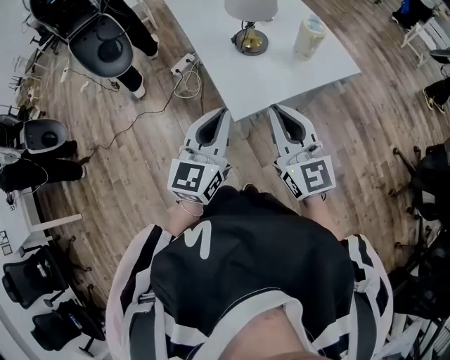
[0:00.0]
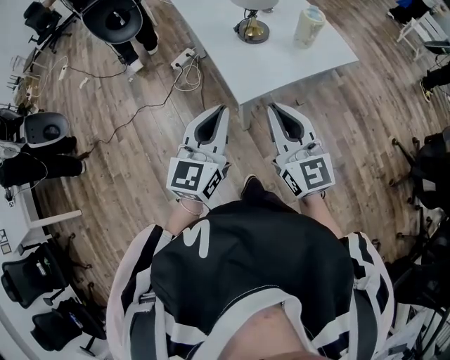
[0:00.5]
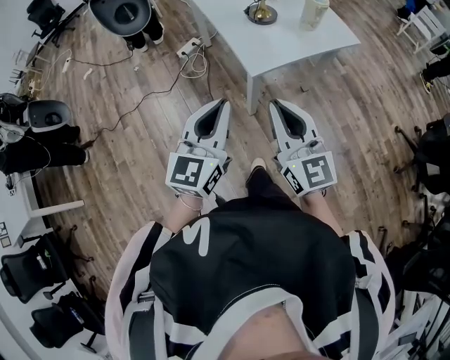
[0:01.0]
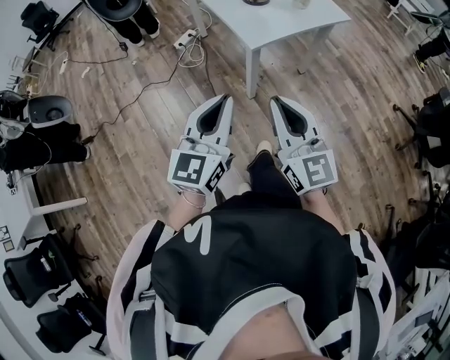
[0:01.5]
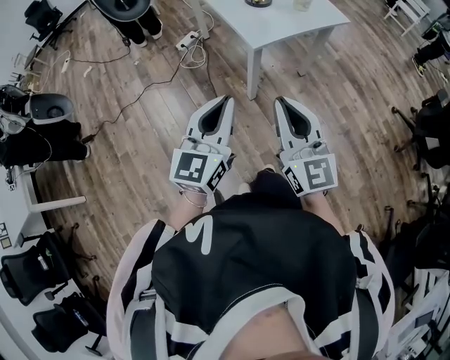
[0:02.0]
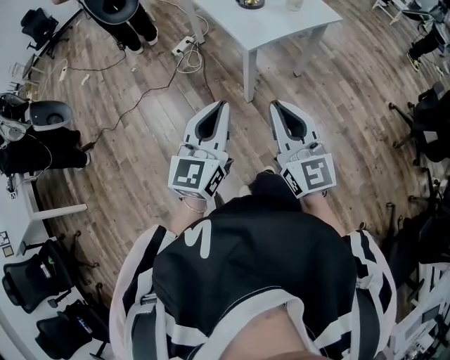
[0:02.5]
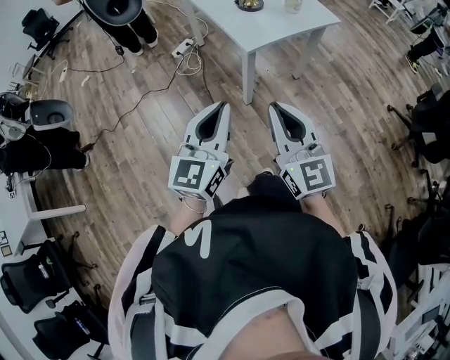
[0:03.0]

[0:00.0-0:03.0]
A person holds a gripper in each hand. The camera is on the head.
0:00.0 to 0:01.5: Both grippers move backward, roughly 25 cm.
0:01.5 to 0:03.0: There are only small adjustments of the grippers.

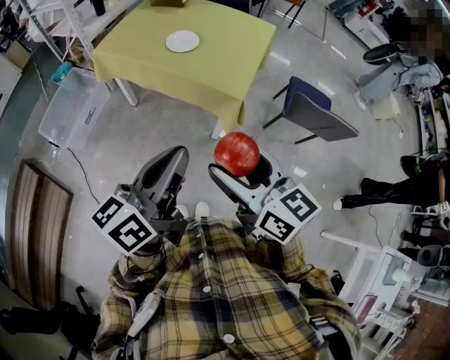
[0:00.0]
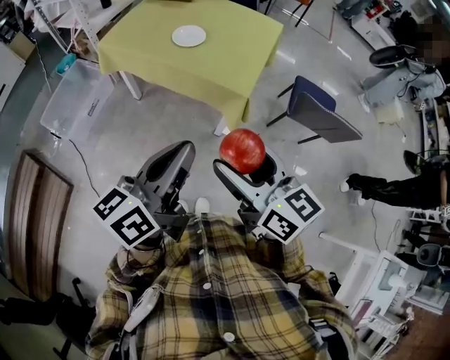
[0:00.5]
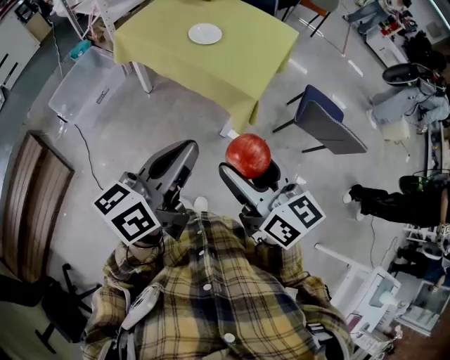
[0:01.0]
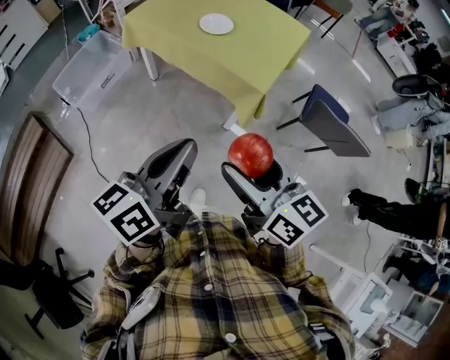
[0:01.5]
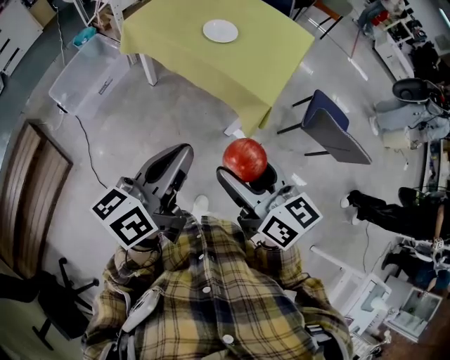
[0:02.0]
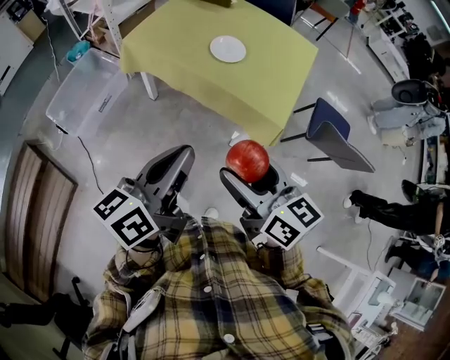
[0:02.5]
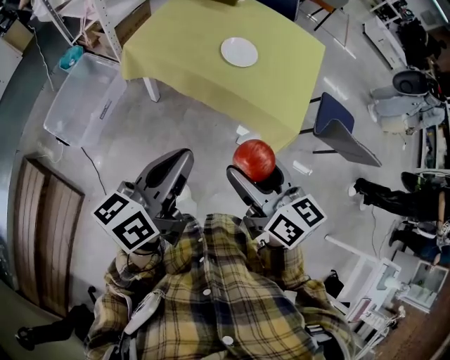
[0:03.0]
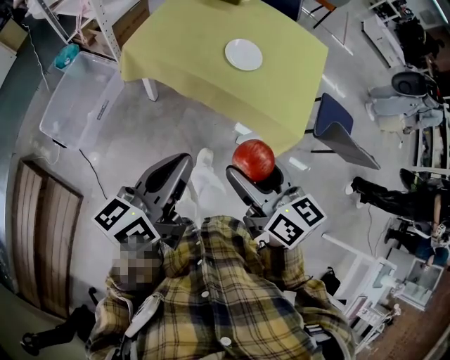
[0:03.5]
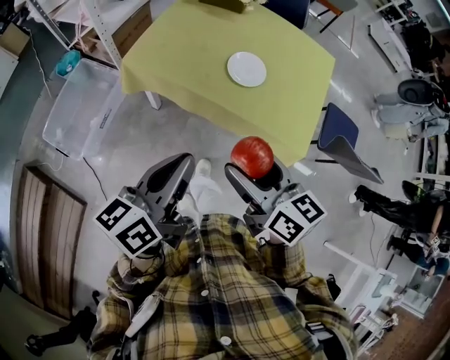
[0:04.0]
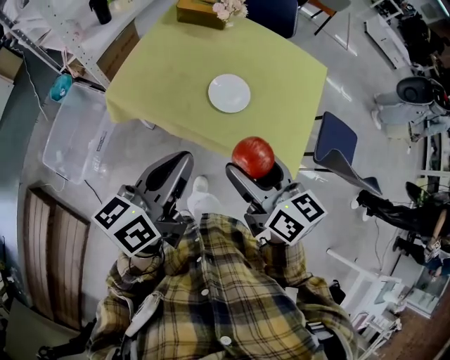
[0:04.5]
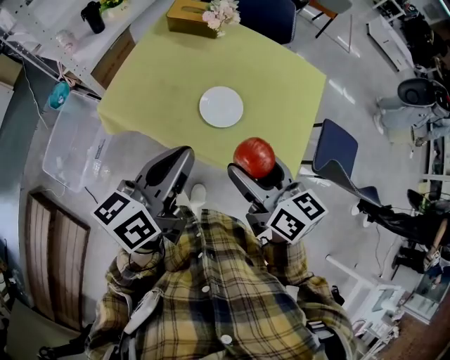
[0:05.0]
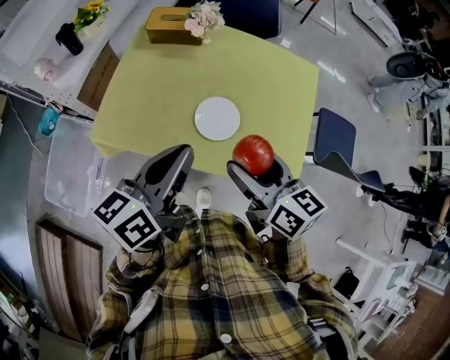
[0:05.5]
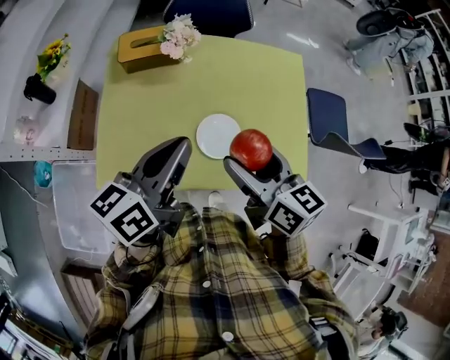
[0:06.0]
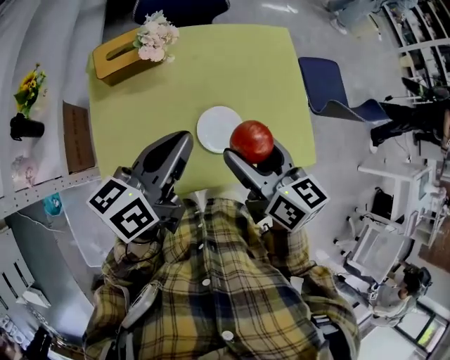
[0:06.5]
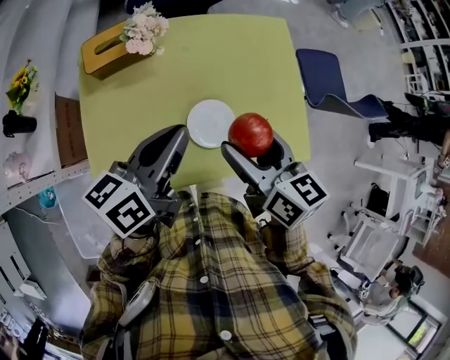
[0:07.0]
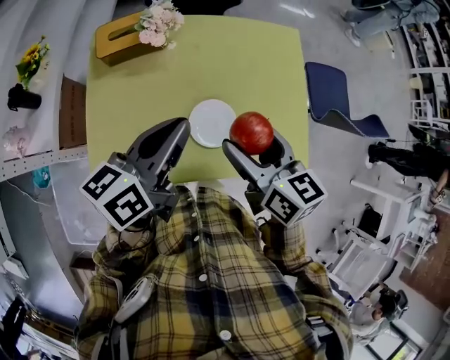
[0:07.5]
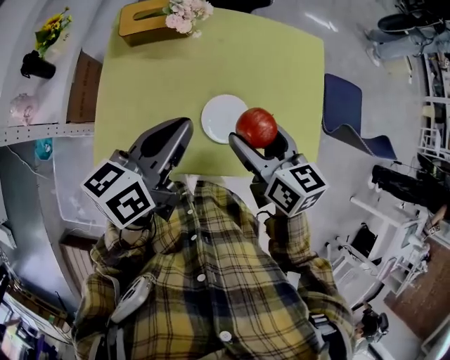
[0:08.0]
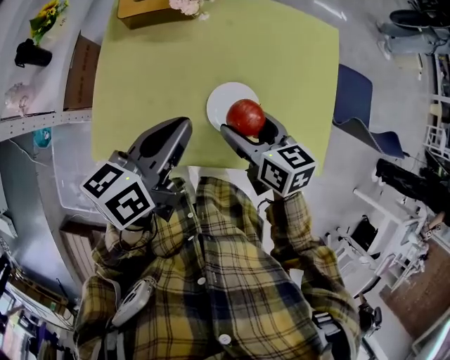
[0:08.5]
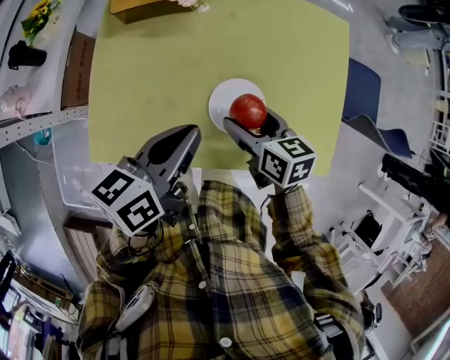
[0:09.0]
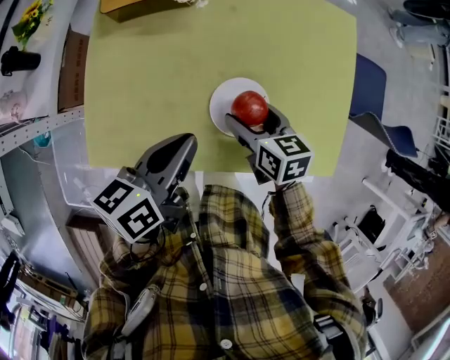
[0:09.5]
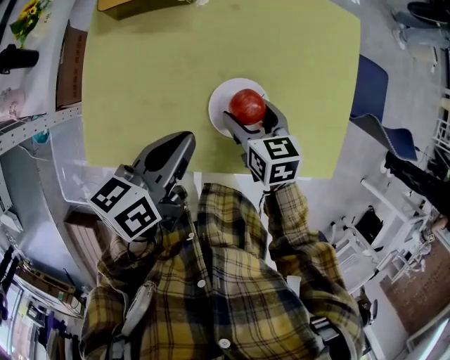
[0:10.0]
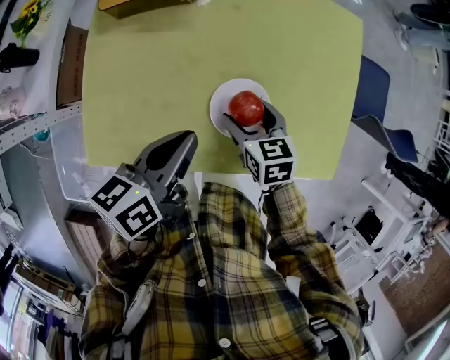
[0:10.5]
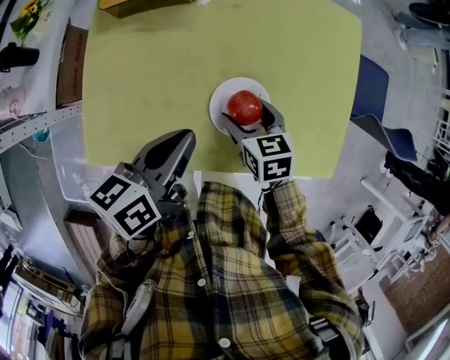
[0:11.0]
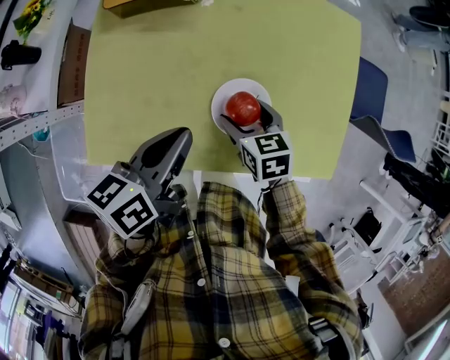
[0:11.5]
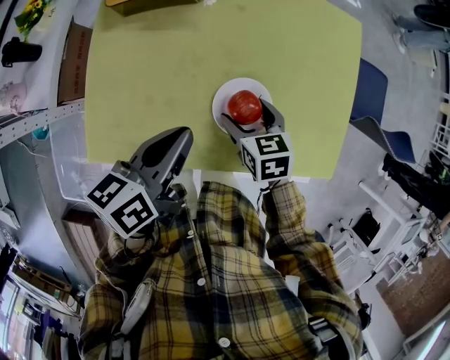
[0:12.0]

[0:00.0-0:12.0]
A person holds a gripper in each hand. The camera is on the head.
0:00.0 to 0:02.0: Both grippers move to the left, some 5 cm.
0:02.0 to 0:04.0: The two grippers go approximately 30 cm forward and to the left.
0:04.0 to 0:06.0: Both grippers move forward, some 35 cm. The right gripper turns by some 20 degrees, while the left gripper changes its angle by about 20 degrees.
0:06.0 to 0:08.0: The right gripper heads downward, covering approximately 5 cm.
0:08.0 to 0:10.0: The right gripper goes about 20 cm downward, while the left gripper heads downward, covering some 10 cm.
0:10.0 to 0:12.0: The grippers move only a little.

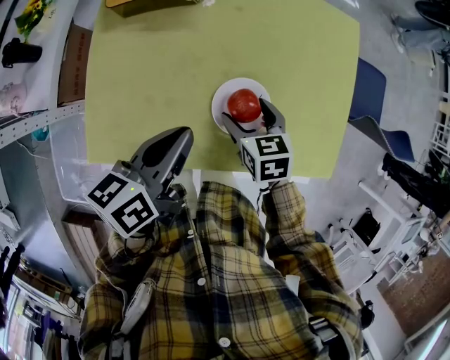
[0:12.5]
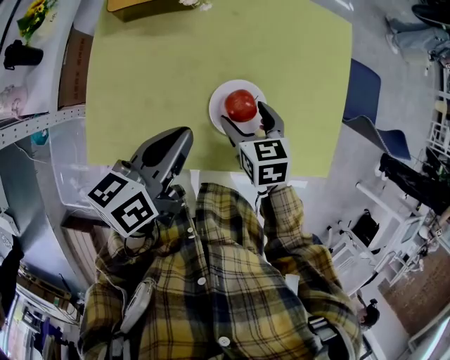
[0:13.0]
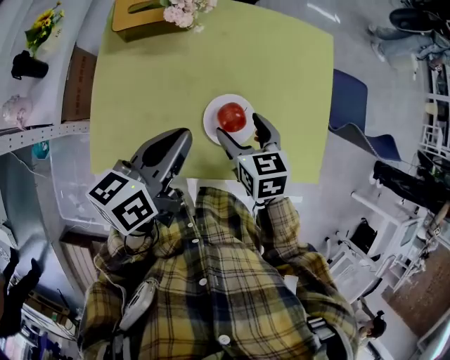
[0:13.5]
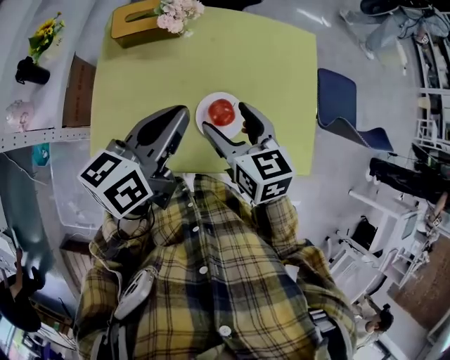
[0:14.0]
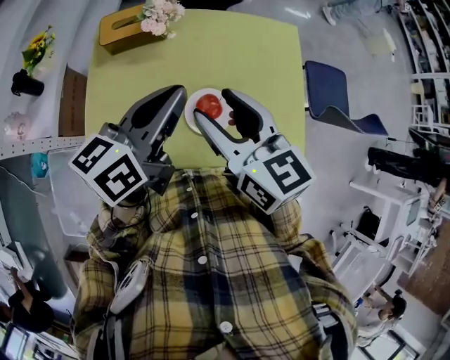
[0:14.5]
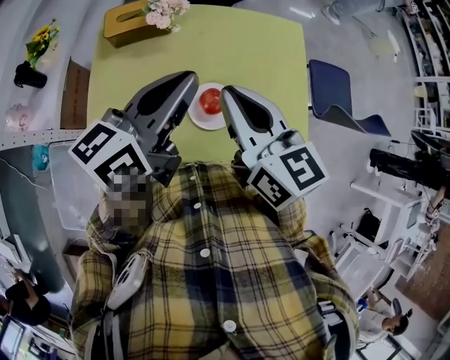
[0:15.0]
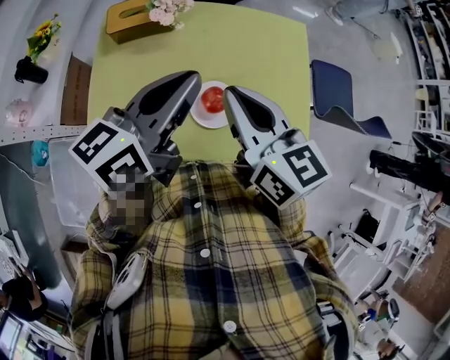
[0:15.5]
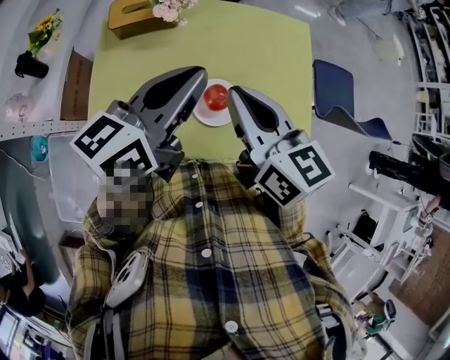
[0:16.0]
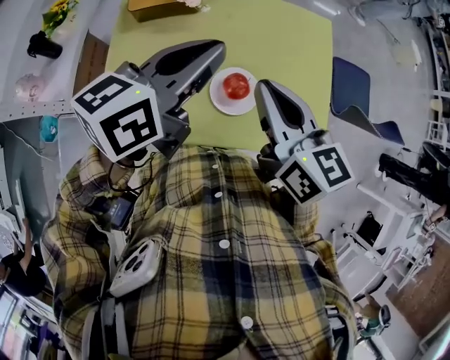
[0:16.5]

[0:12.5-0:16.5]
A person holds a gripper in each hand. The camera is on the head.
0:12.5 to 0:14.5: The right gripper heads upward, covering approximately 30 cm, and tips its fingers upward by roughly 40 degrees. Meanwhile the left gripper shifts roughly 15 cm upward, and changes its angle by approximately 20 degrees.
0:14.5 to 0:16.5: The right gripper closes.

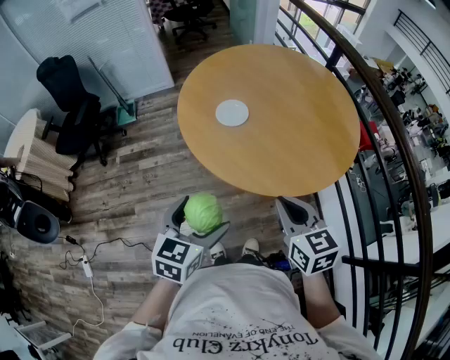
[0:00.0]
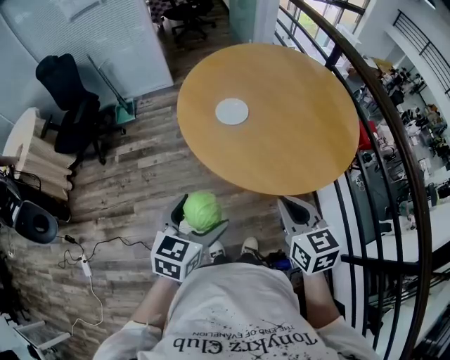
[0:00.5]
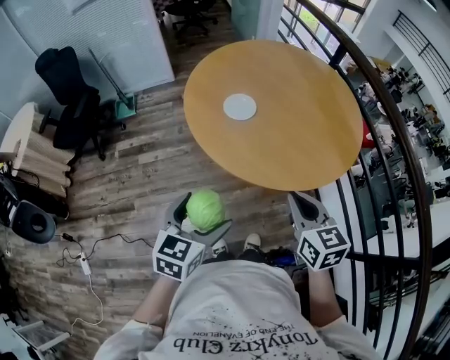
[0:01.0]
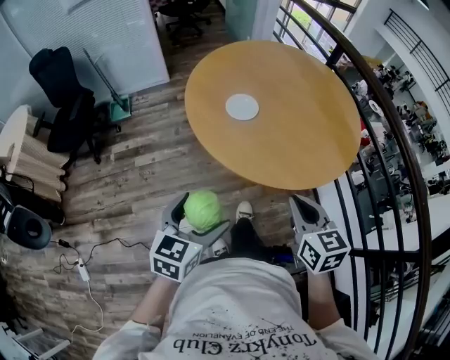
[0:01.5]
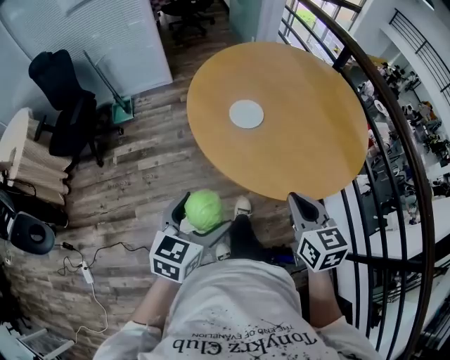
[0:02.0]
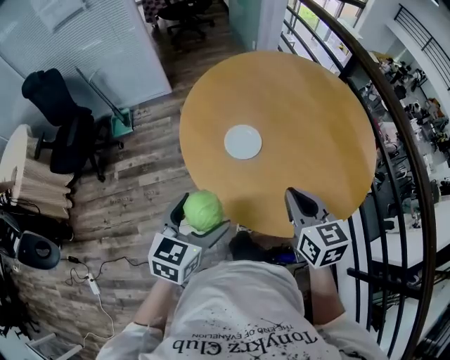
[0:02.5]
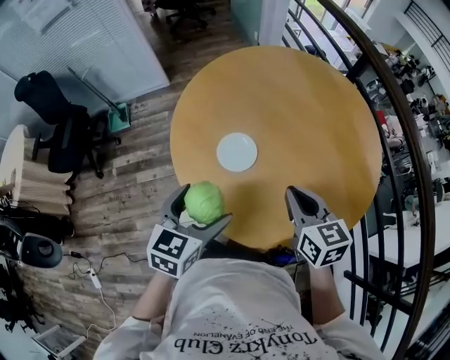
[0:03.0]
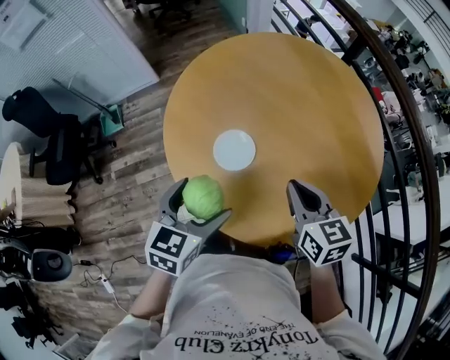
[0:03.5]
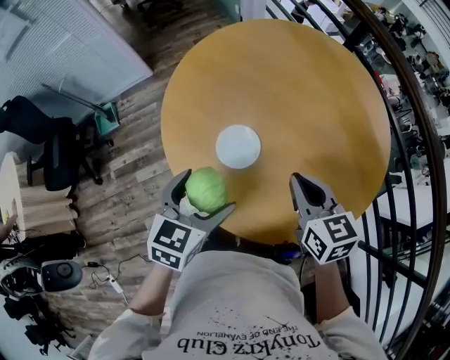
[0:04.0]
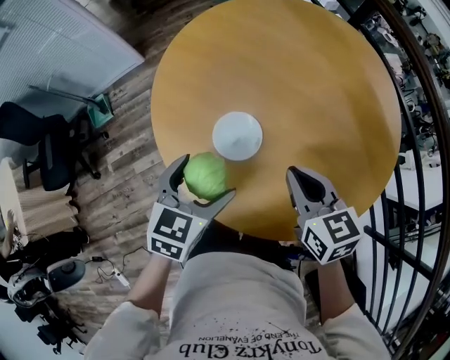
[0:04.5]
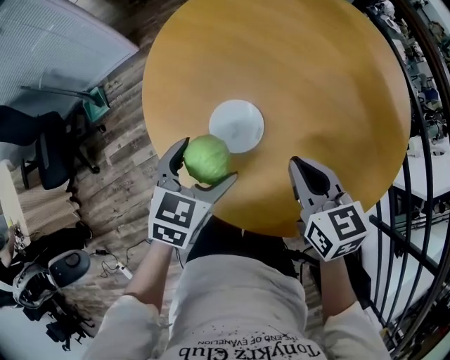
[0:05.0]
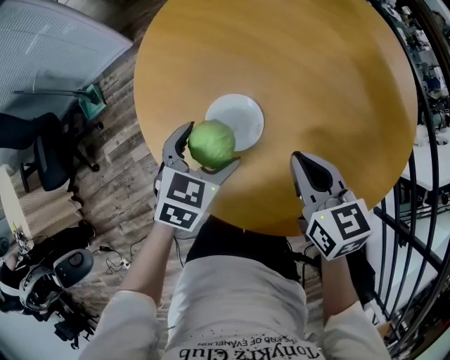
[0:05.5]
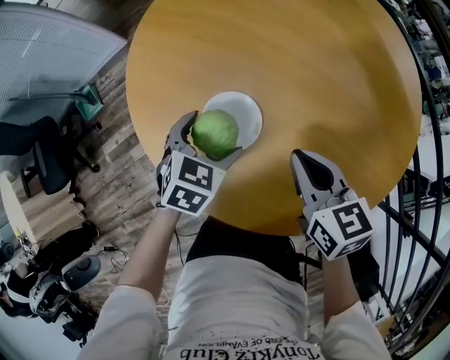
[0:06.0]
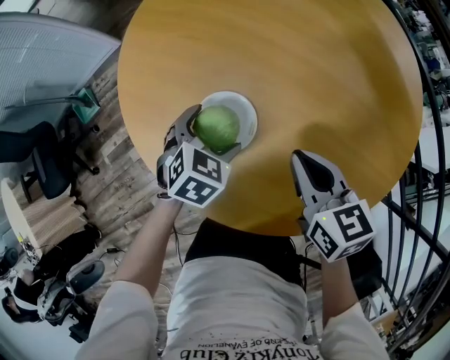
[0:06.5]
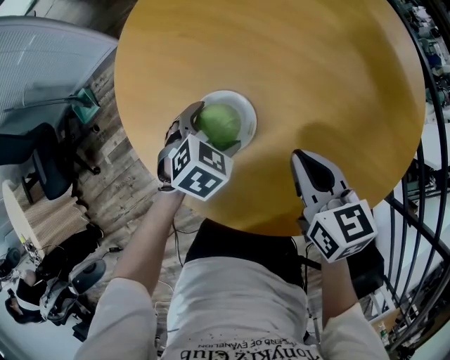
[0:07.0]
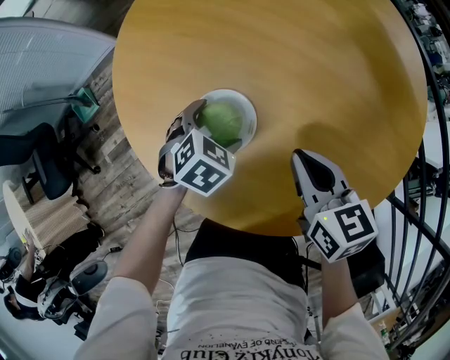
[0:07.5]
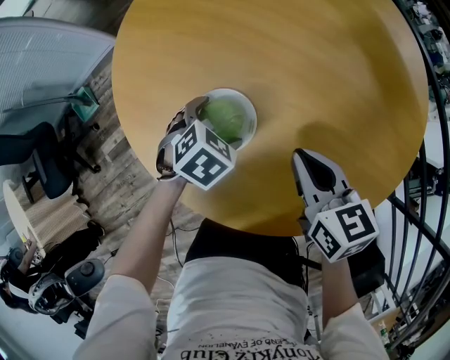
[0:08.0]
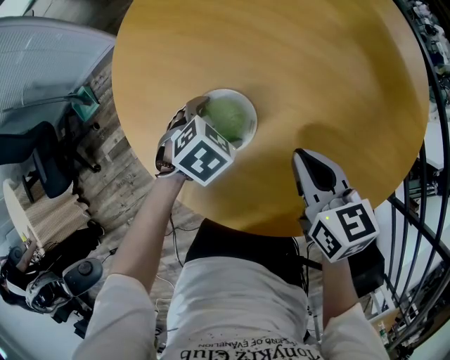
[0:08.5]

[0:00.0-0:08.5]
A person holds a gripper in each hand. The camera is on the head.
0:00.0 to 0:02.0: Both grippers travel together to the left, roughly 5 cm.
0:02.0 to 0:04.0: The grippers both shift forward by about 30 cm.
0:04.0 to 0:06.5: The left gripper shifts about 25 cm downward and forward, and swivels some 30 degrees, while the right gripper is displaced downward and forward by roughly 15 cm.
0:06.5 to 0:08.5: The grippers stay close to where they were, moving slightly.
